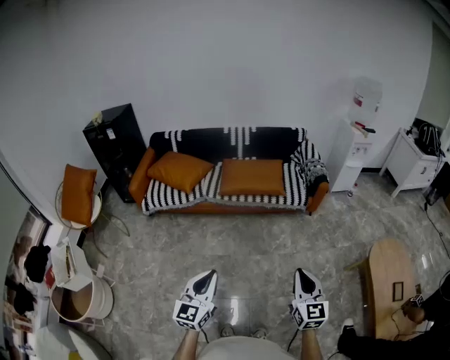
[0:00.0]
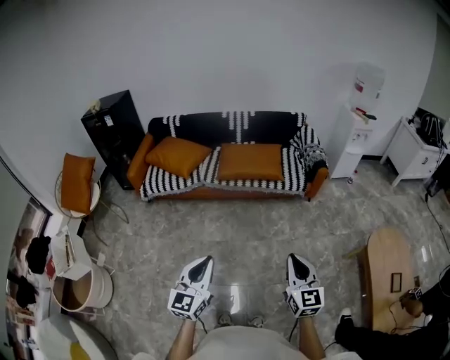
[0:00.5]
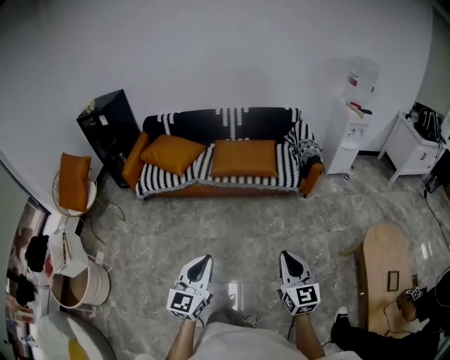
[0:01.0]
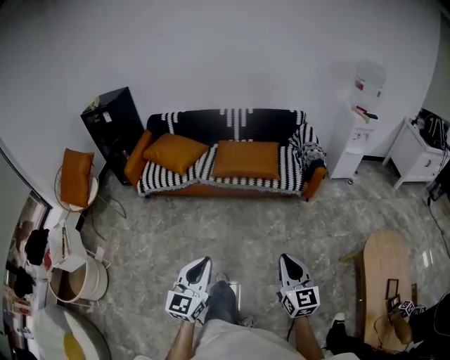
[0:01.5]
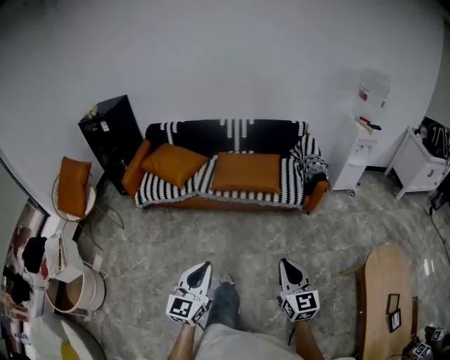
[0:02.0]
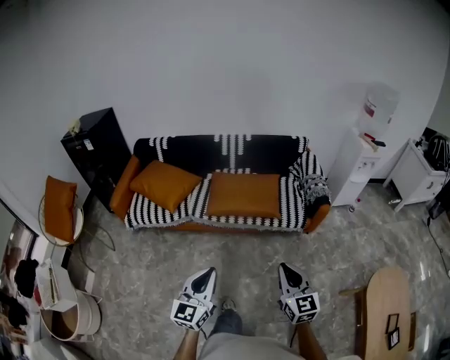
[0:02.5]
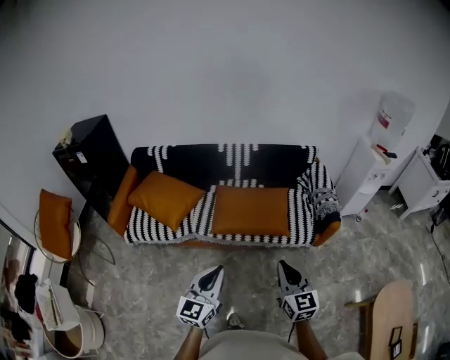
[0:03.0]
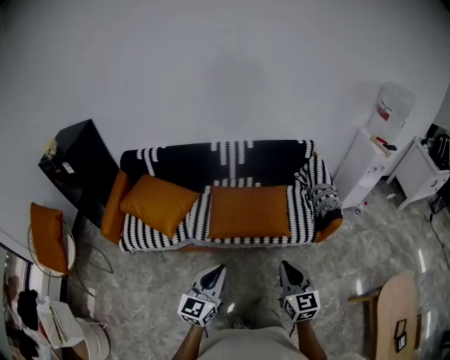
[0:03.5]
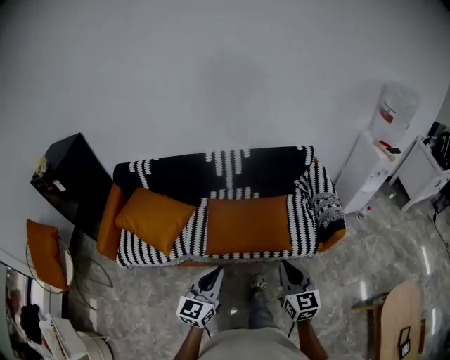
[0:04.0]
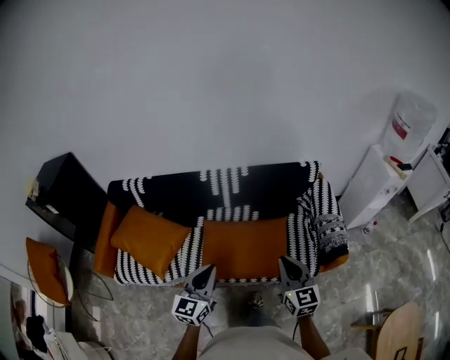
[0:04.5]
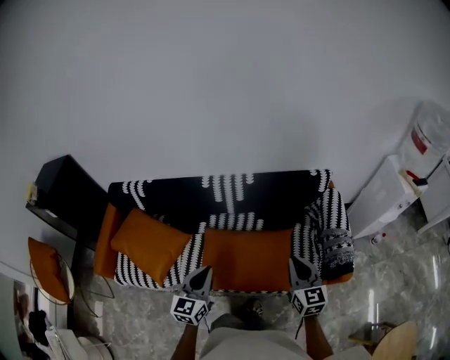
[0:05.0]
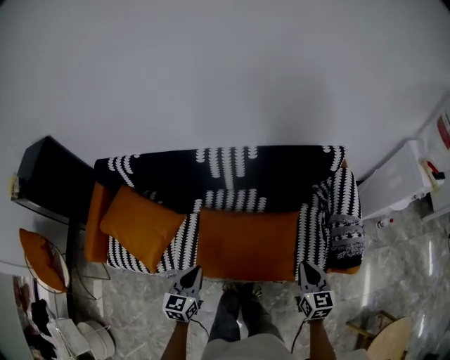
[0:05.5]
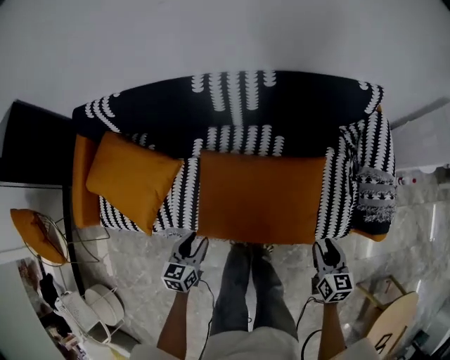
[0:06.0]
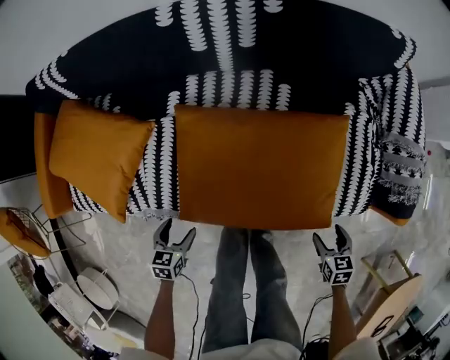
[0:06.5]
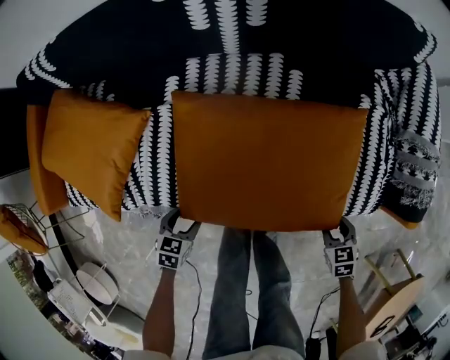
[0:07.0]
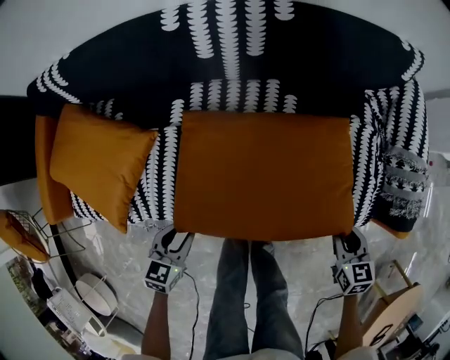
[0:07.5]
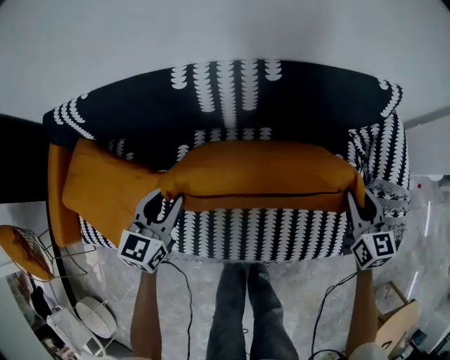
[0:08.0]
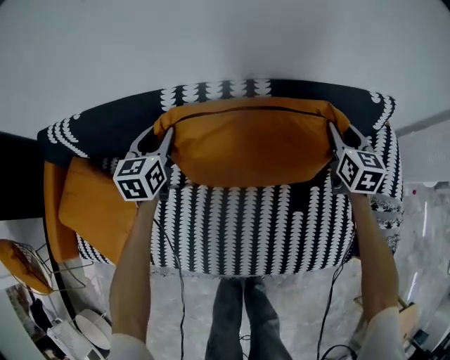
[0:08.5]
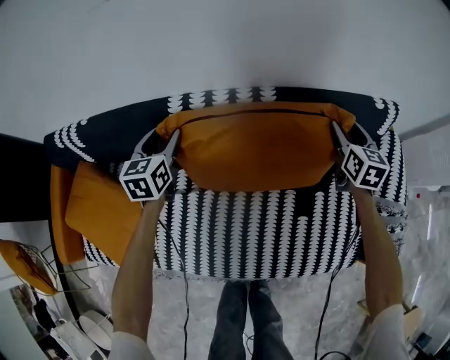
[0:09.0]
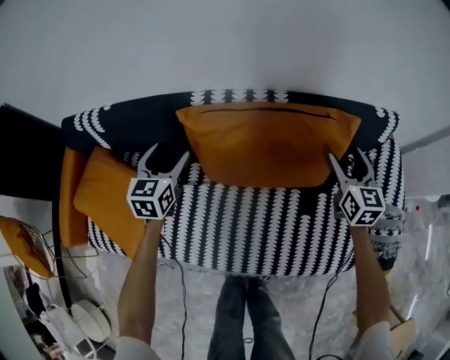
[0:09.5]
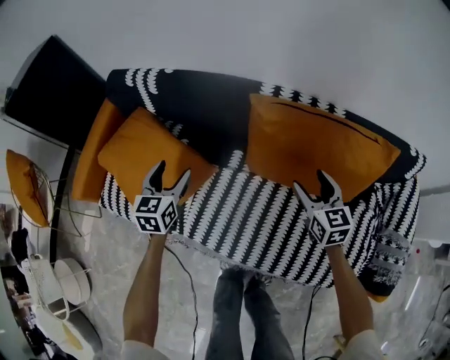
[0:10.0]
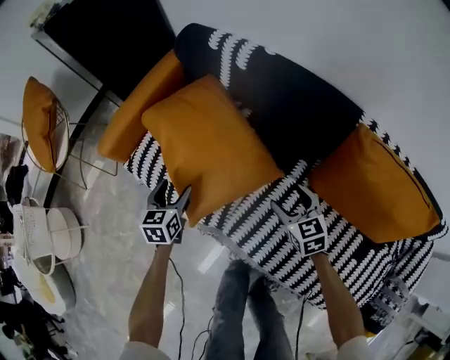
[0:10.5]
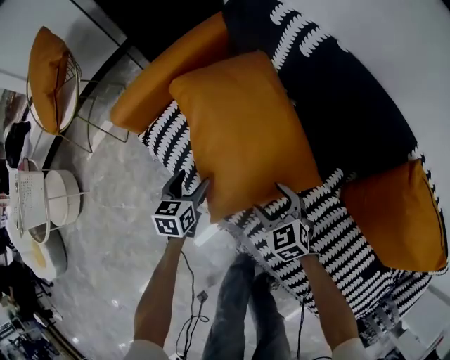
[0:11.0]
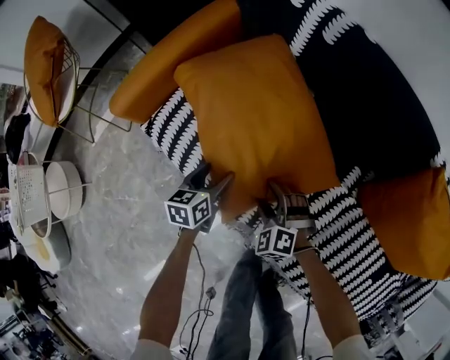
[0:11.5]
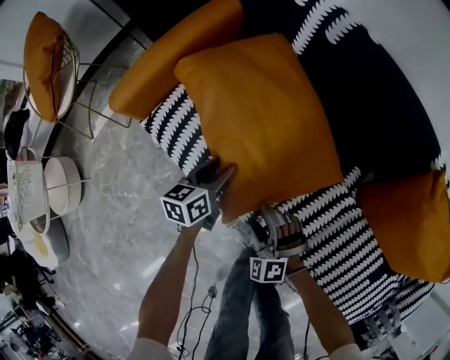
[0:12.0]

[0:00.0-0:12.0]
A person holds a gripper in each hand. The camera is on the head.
0:00.0 to 0:02.0: The left gripper is displaced forward and to the right by some 10 cm; the right gripper moves forward, approximately 10 cm.
0:02.0 to 0:04.0: Both grippers are carried forward, about 50 cm.
0:04.0 to 0:06.0: The left gripper shifts roughly 50 cm downward and forward, and angles its fingers downward, by some 40 degrees; the right gripper is displaced downward, forward and to the right by approximately 40 cm, and rotates about 30 degrees.
0:06.0 to 0:08.0: The two grippers go about 25 cm forward. The right gripper opens and closes again, while the left gripper turns by approximately 20 degrees, and opens, then closes once more.
0:08.0 to 0:10.0: The left gripper changes place by some 20 cm, rotates some 30 degrees, and opens its fingers, while the right gripper shifts by about 30 cm, changes its angle by roughly 20 degrees, and opens its fingers.
0:10.0 to 0:12.0: The right gripper ends up about 50 cm from where it was, and rolls counterclockwise, seen from behind, by approximately 80 degrees; the left gripper ends up about 35 cm from where it was, and turns by approximately 40 degrees.

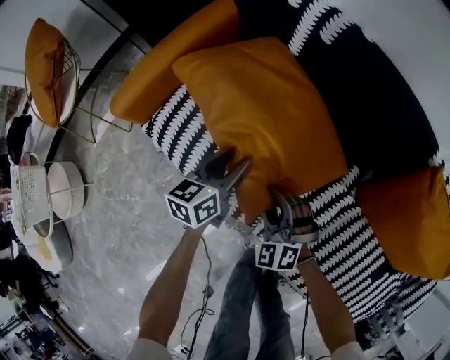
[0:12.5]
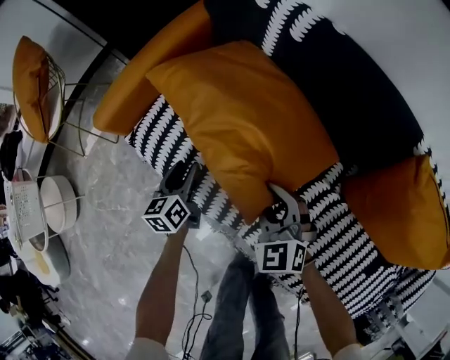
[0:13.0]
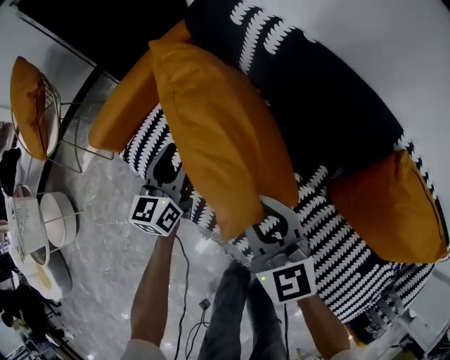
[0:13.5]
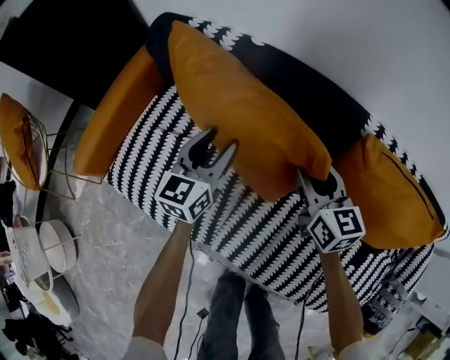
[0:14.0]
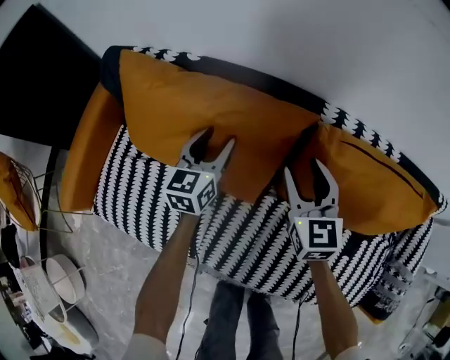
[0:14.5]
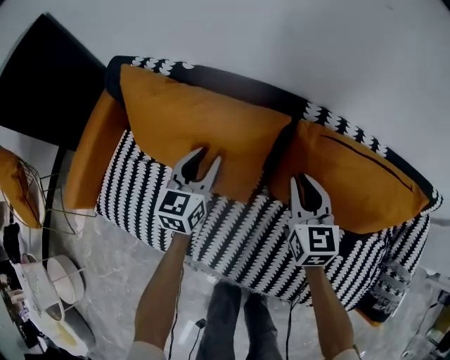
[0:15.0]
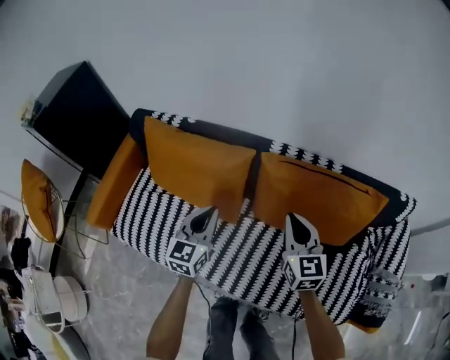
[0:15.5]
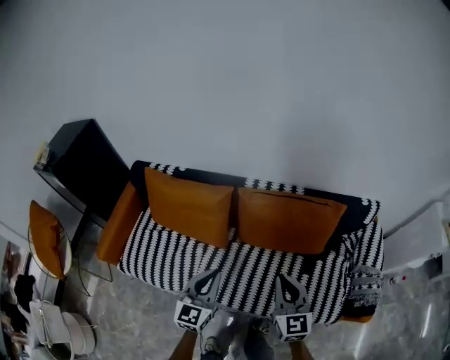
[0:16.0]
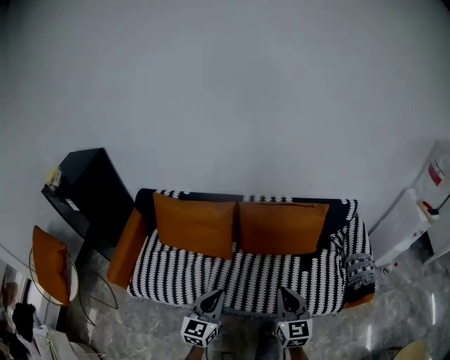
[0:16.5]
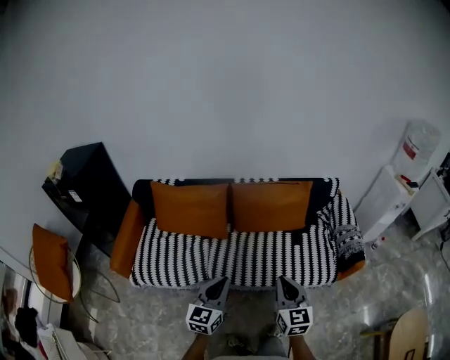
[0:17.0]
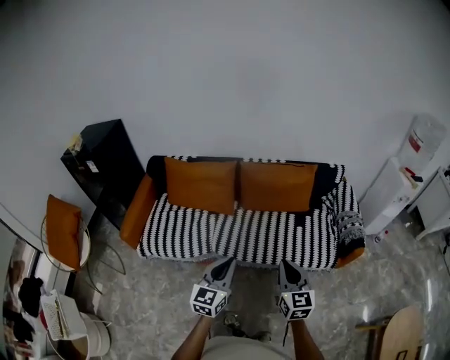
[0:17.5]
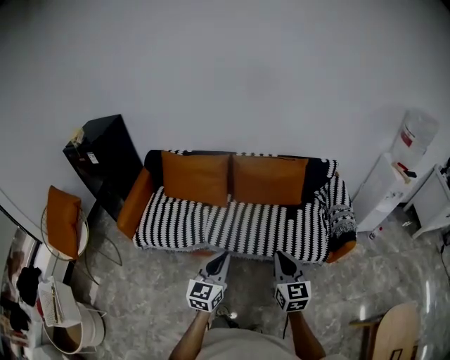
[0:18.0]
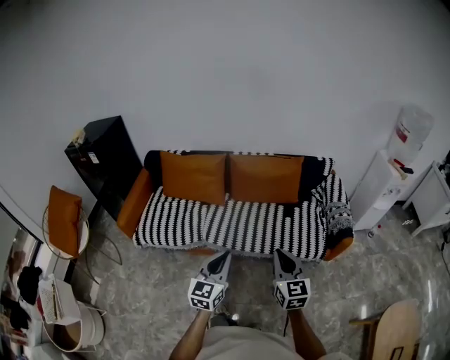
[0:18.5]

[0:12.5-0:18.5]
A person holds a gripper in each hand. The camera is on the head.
0:12.5 to 0:14.5: The right gripper shifts by about 40 cm, and rotates around the line of its fingers by approximately 50 degrees, clockwise from behind. Meanwhile the left gripper ends up roughly 35 cm from where it was, and swivels some 30 degrees.
0:14.5 to 0:16.5: The pair of grippers is taken backward, roughly 50 cm. The grippers both shift upward by roughly 30 cm. The right gripper closes; the left gripper closes up.
0:16.5 to 0:18.5: The right gripper is displaced backward by some 25 cm, while the left gripper travels backward and to the right by some 30 cm.

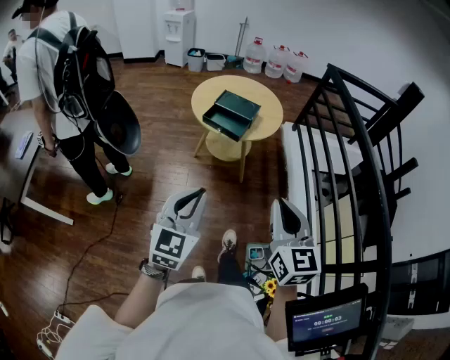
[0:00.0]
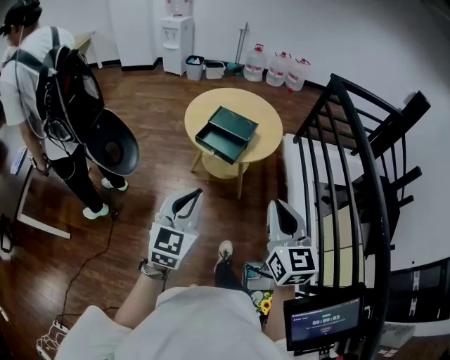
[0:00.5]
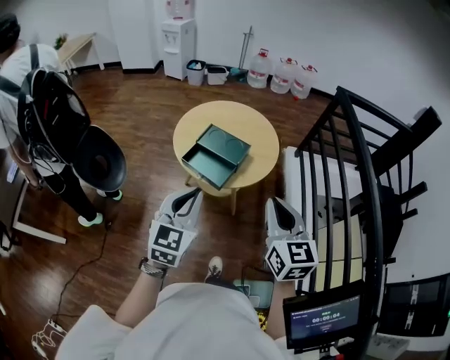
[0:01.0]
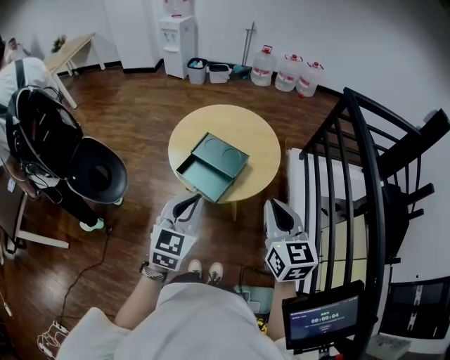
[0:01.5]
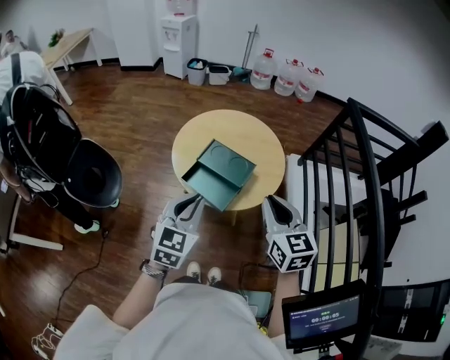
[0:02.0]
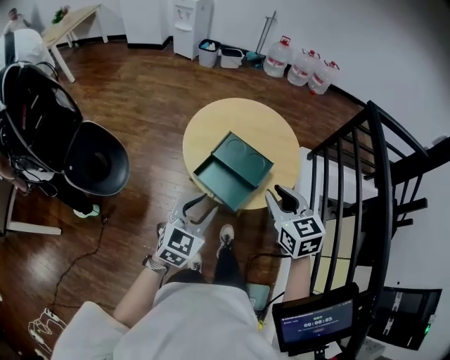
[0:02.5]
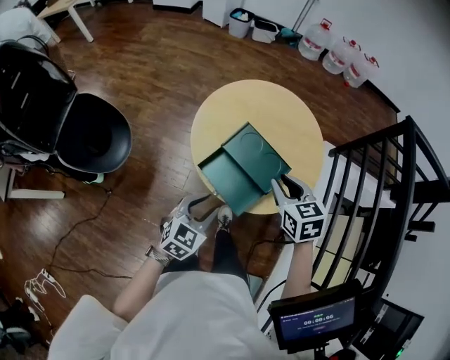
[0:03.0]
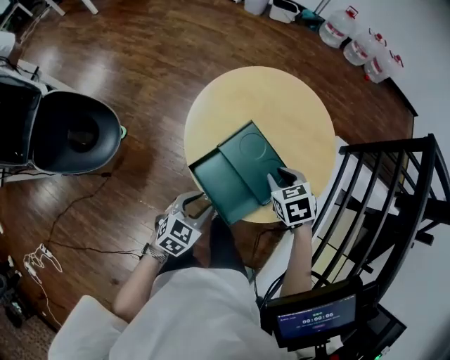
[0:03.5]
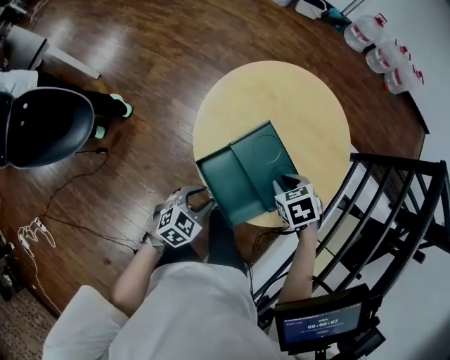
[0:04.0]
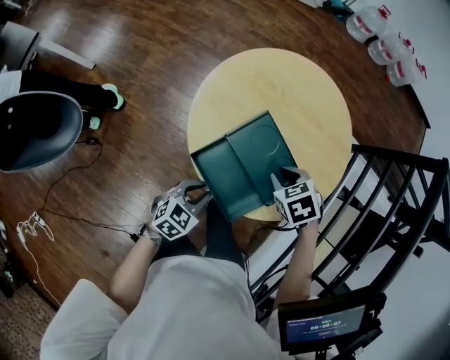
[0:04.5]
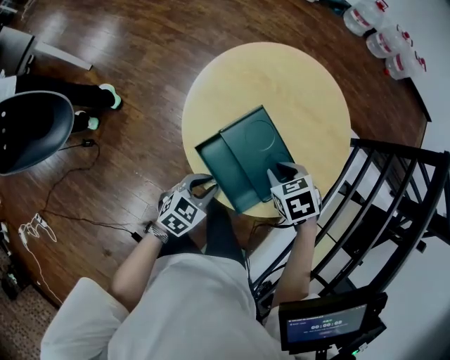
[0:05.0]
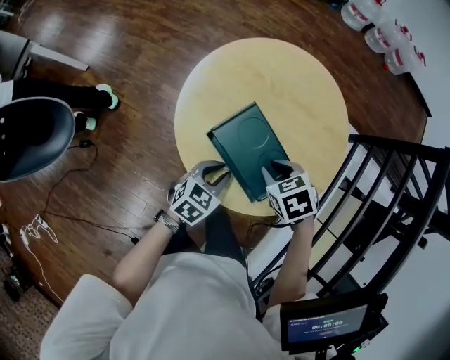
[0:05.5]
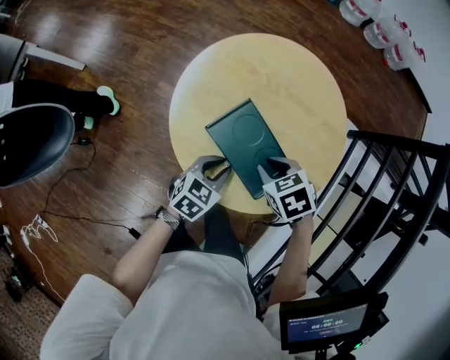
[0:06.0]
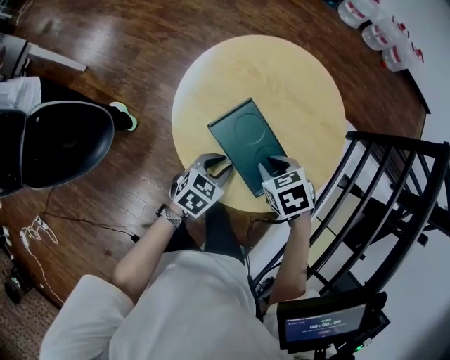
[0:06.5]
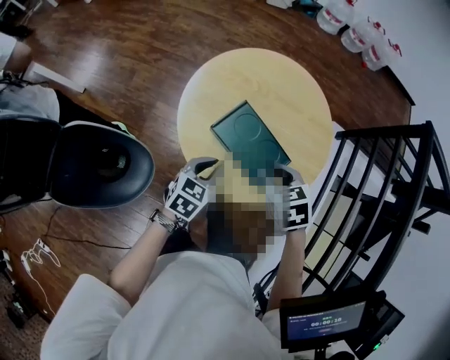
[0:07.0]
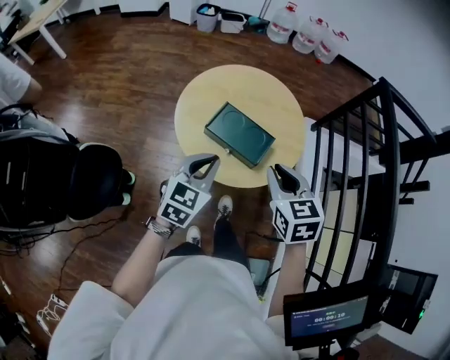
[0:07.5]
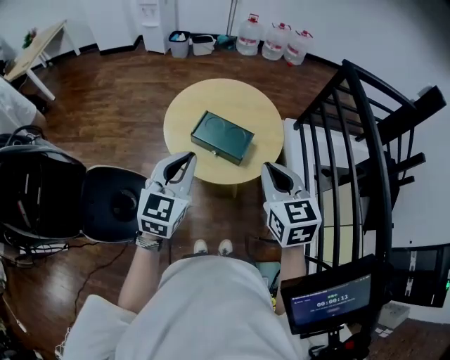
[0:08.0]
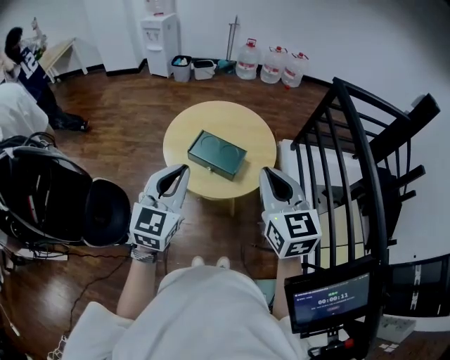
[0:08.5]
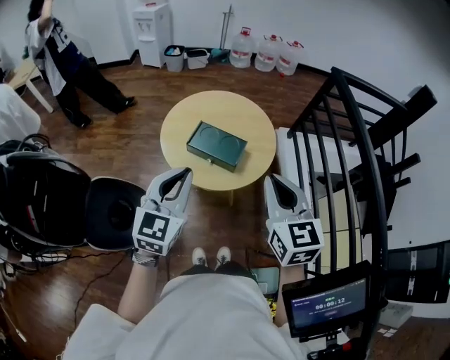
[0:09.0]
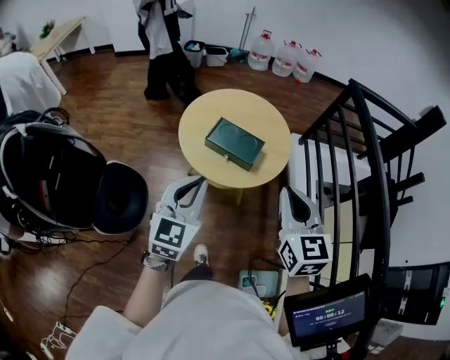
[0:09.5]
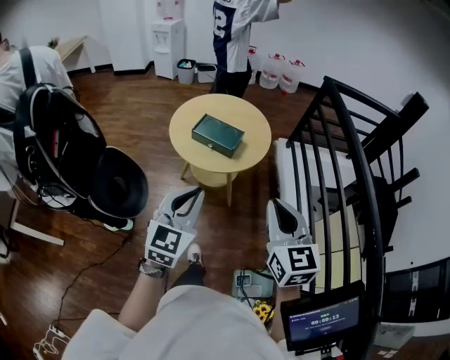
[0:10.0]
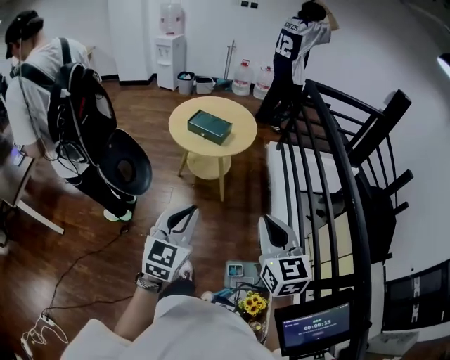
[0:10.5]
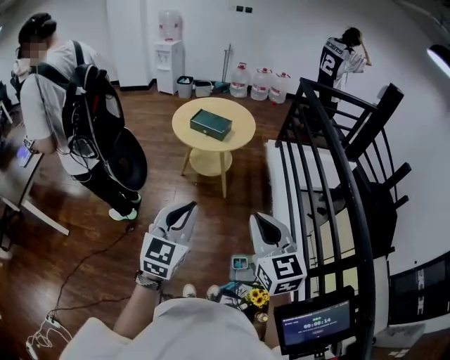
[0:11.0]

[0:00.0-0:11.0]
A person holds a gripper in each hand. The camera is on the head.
0:00.0 to 0:02.0: Both grippers move forward, roughly 35 cm.
0:02.0 to 0:03.5: The left gripper goes roughly 25 cm downward, rotates about 30 degrees, and opens. The right gripper moves downward and forward, approximately 30 cm, and tilts its fingers about 40 degrees downward.
0:03.5 to 0:05.5: The left gripper goes about 10 cm forward and to the right.
0:05.5 to 0:07.5: The grippers both shift upward by about 20 cm. The right gripper points its fingers some 30 degrees further upward; the left gripper changes its angle by roughly 30 degrees.
0:07.5 to 0:09.0: Both grippers move upward and backward, about 15 cm. The right gripper turns by approximately 20 degrees.
0:09.0 to 0:11.0: The pair of grippers is taken backward, some 40 cm.
